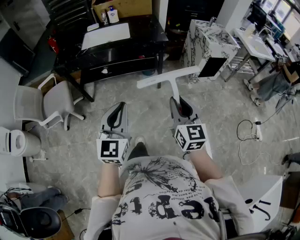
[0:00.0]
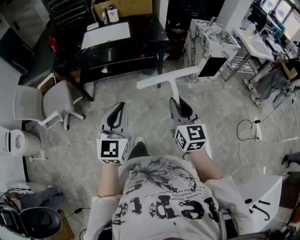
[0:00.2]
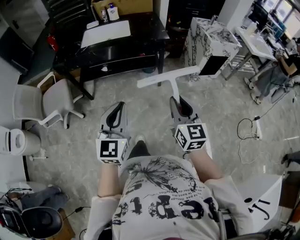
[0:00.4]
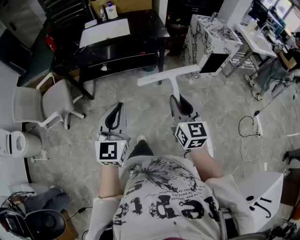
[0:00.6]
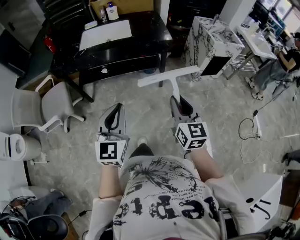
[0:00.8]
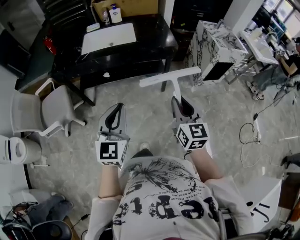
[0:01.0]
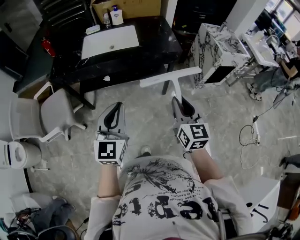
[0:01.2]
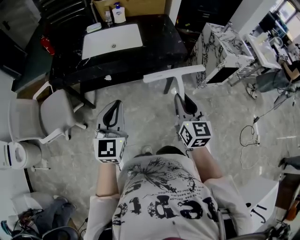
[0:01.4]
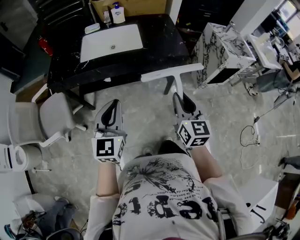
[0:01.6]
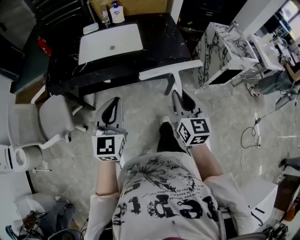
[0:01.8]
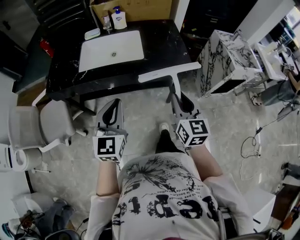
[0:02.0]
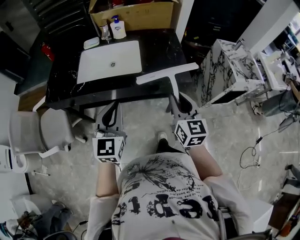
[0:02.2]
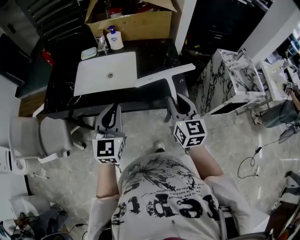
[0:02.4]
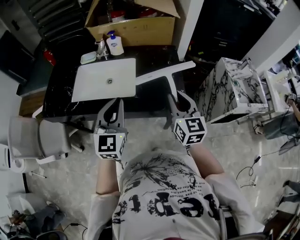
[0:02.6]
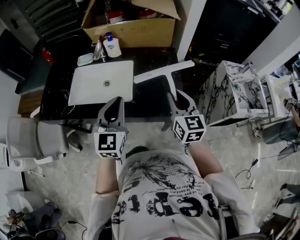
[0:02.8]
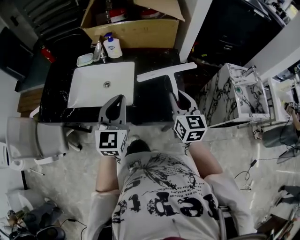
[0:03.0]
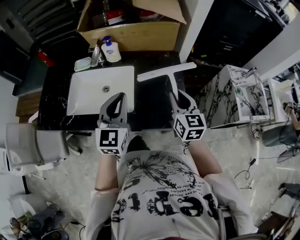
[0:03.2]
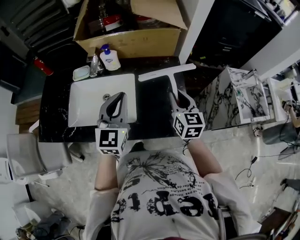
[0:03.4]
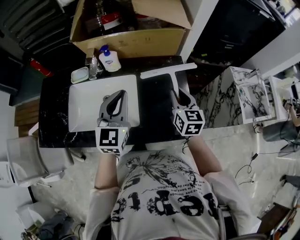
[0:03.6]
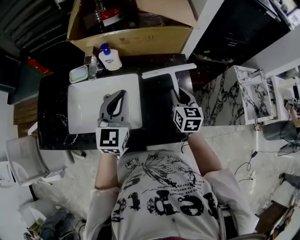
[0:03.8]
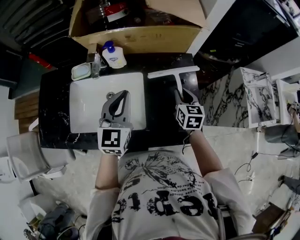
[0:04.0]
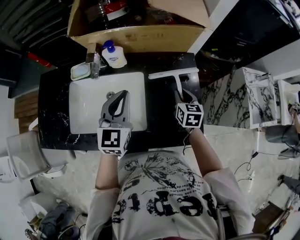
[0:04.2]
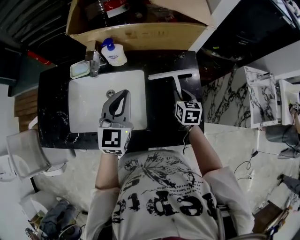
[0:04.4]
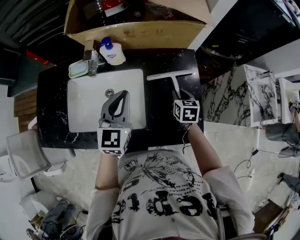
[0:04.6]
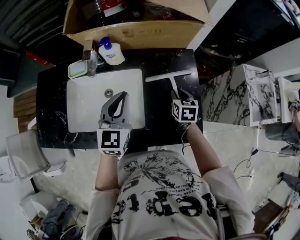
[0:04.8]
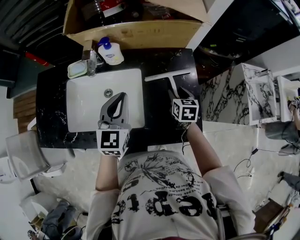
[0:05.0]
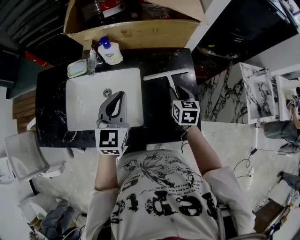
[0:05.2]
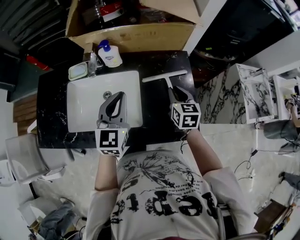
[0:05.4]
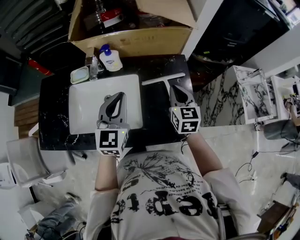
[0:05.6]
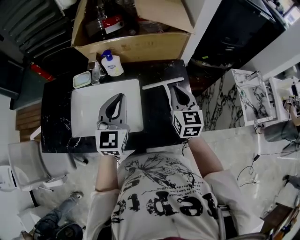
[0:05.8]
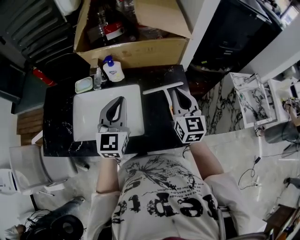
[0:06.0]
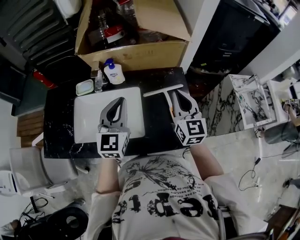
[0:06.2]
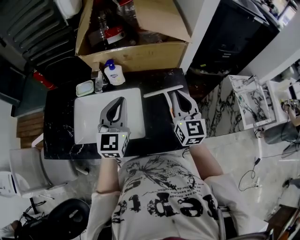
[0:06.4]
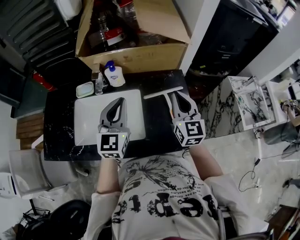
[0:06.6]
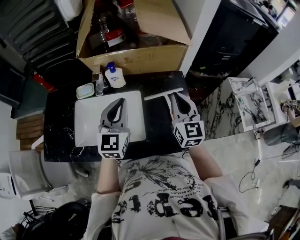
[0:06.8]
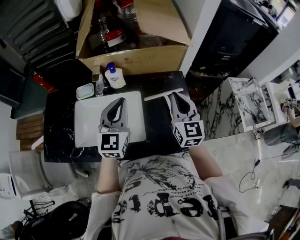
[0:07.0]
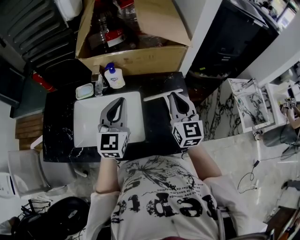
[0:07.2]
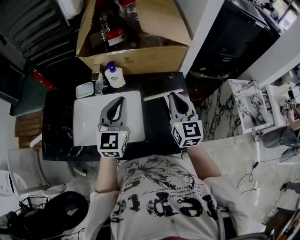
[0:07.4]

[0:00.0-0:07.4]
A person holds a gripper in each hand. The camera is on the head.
0.0 to 1.4 s: Both grippers travel together forward and to the left, some 25 cm.
1.4 to 3.0 s: The pair of grippers is taken forward, some 40 cm.
3.0 to 4.4 s: The right gripper shifts approximately 25 cm downward and forward, and swivels approximately 30 degrees, while the left gripper is displaced forward by some 20 cm.
4.4 to 6.0 s: The right gripper shifts some 20 cm upward, tilts its fingers about 30 degrees upward, and opens and closes again; the left gripper heads upward, covering about 5 cm.
6.0 to 7.4 s: The grippers move only a little.

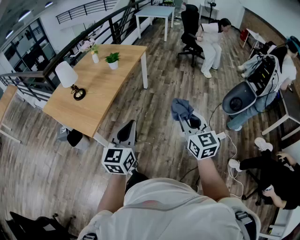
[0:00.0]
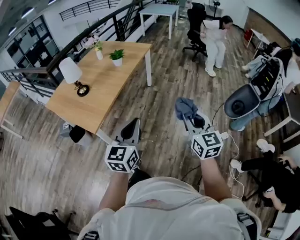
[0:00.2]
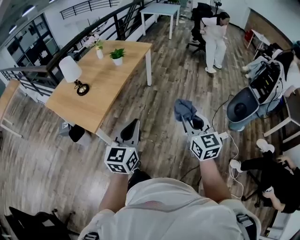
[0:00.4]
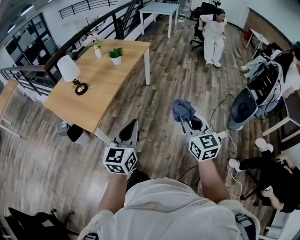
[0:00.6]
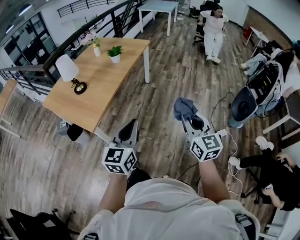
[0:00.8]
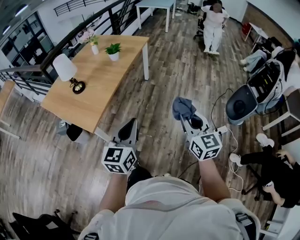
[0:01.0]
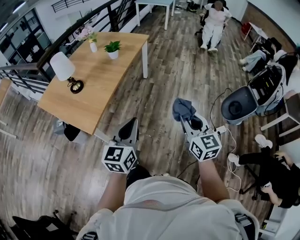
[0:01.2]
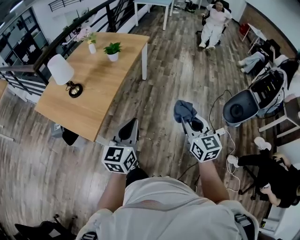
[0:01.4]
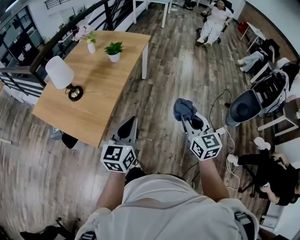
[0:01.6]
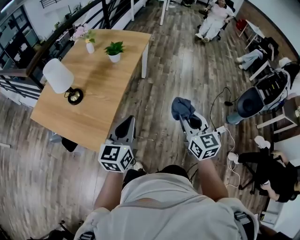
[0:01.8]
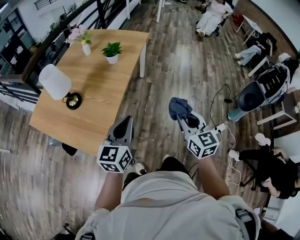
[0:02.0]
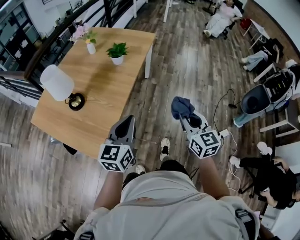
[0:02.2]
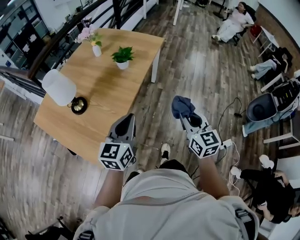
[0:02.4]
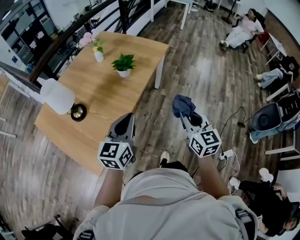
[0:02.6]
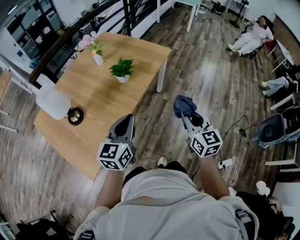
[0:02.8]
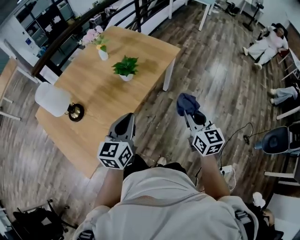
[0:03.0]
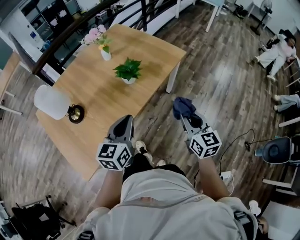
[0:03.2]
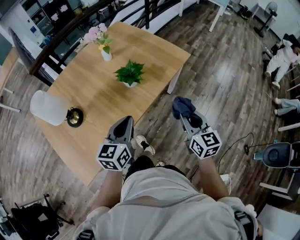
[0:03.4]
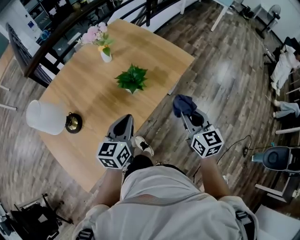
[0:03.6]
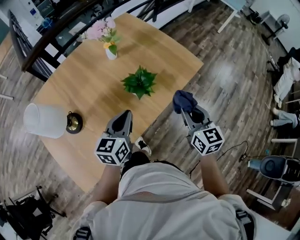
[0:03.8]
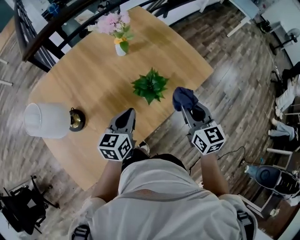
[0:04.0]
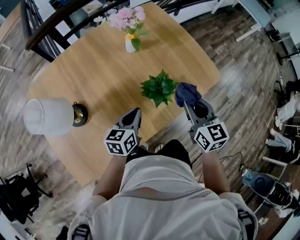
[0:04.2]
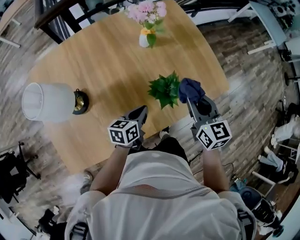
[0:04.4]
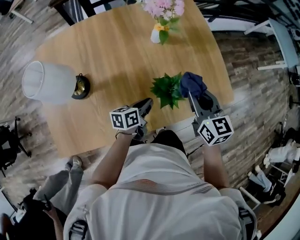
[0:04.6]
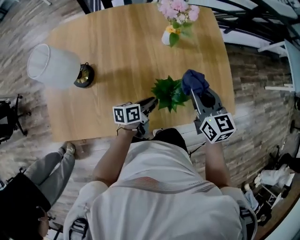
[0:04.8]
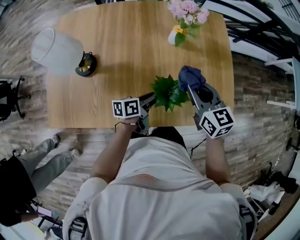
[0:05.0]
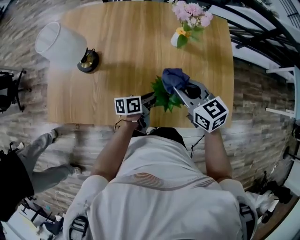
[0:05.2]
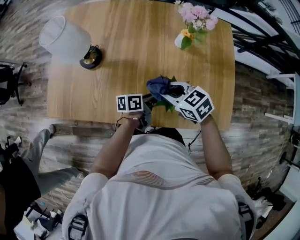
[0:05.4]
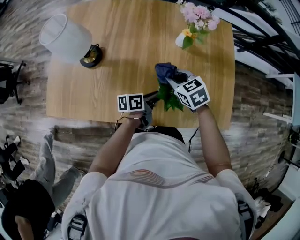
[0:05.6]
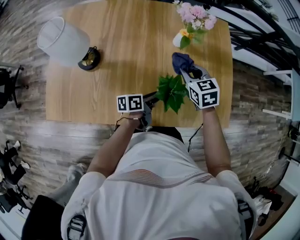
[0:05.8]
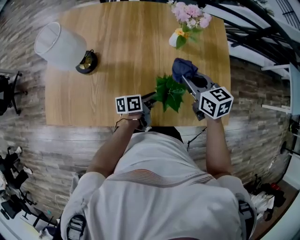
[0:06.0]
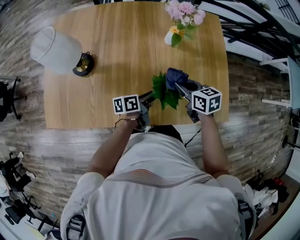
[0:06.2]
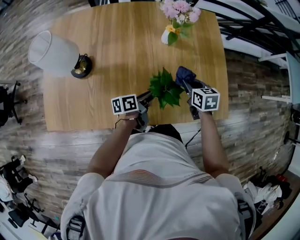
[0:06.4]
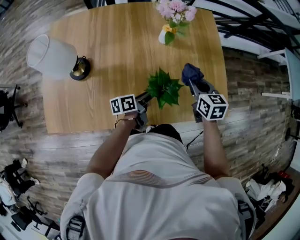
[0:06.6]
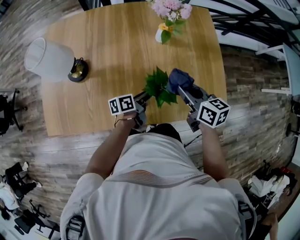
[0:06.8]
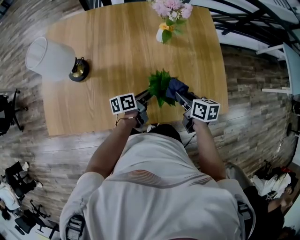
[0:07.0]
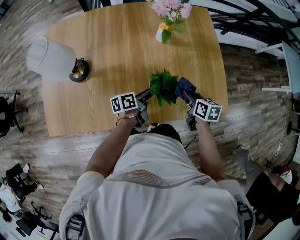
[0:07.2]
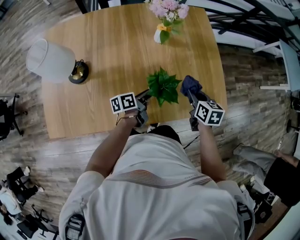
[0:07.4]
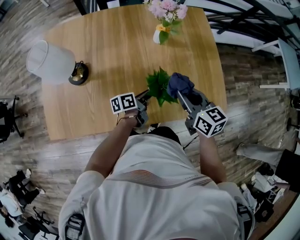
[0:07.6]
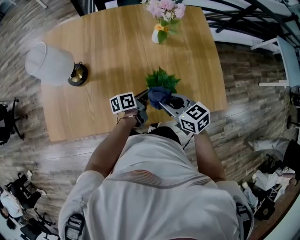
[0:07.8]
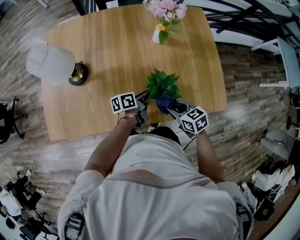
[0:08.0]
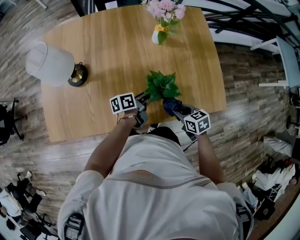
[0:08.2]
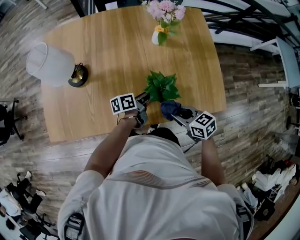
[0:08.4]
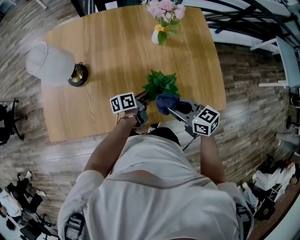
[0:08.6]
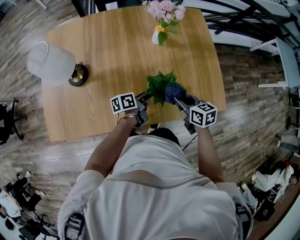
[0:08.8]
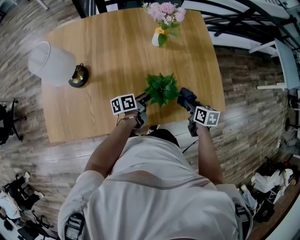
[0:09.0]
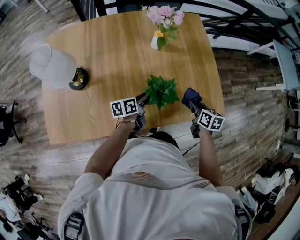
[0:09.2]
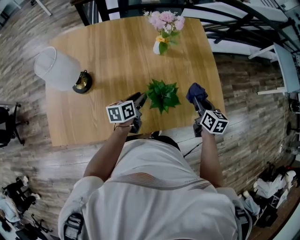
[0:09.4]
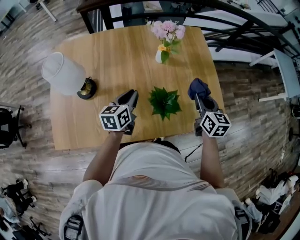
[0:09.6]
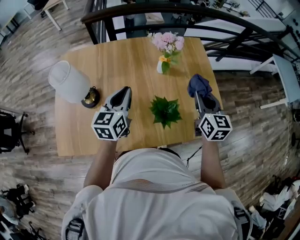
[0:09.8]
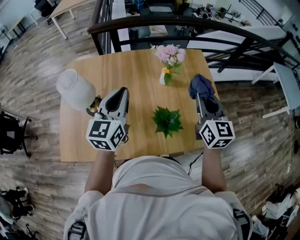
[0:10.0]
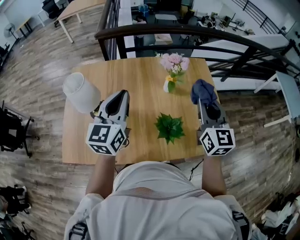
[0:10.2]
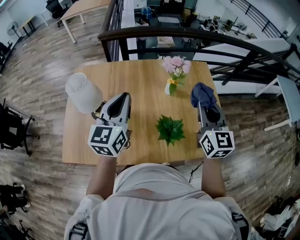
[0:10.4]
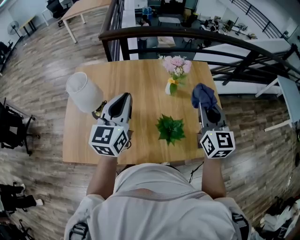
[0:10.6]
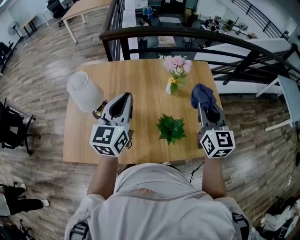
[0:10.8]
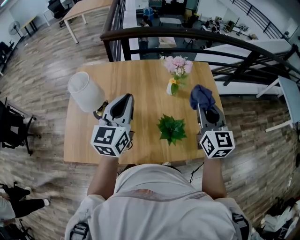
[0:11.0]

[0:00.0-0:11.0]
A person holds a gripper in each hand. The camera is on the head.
0.0 to 1.6 s: The two grippers go approximately 15 cm forward and to the left.
1.6 to 3.2 s: Both grippers travel together forward, approximately 40 cm. The right gripper swivels about 20 degrees; the left gripper swivels some 20 degrees.
3.2 to 4.8 s: The right gripper changes place by about 40 cm, and rotates about 50 degrees; the left gripper changes place by about 35 cm, and twists approximately 60 degrees counterclockwise, seen from behind.
4.8 to 6.2 s: The right gripper swings up and down, roughly 10 cm each way, with 2 reversals, and changes its angle by some 30 degrees.
6.2 to 7.8 s: The right gripper goes left and right, about 15 cm each way, reversing 3 times.
7.8 to 9.4 s: The right gripper swings left and right, approximately 20 cm each way, with 2 reversals, and changes its angle by about 40 degrees. The left gripper moves about 5 cm, and changes its angle by some 30 degrees.
9.4 to 11.0 s: The left gripper moves upward, roughly 30 cm, turns by some 50 degrees, and closes up; the right gripper moves upward and to the left, roughly 25 cm, and turns by approximately 40 degrees.

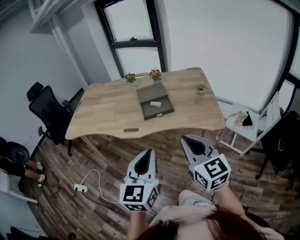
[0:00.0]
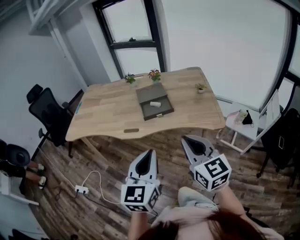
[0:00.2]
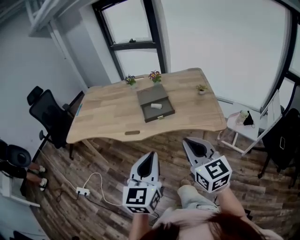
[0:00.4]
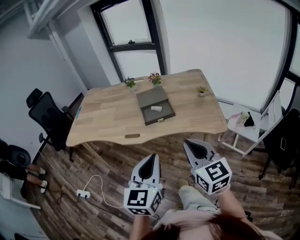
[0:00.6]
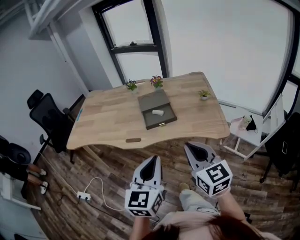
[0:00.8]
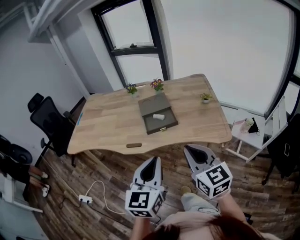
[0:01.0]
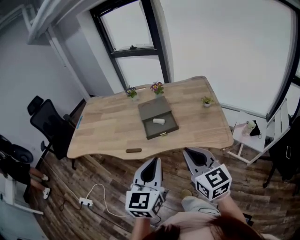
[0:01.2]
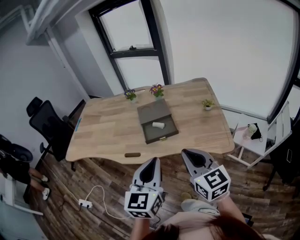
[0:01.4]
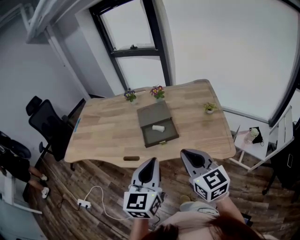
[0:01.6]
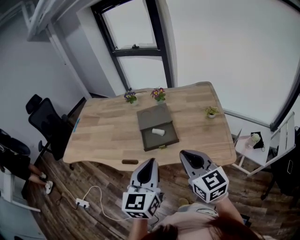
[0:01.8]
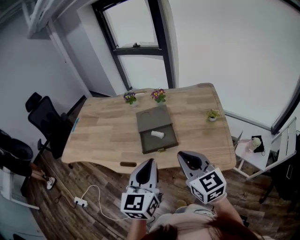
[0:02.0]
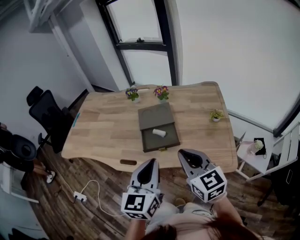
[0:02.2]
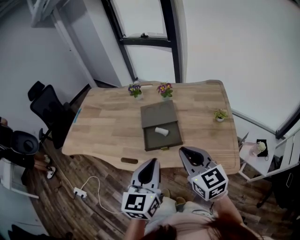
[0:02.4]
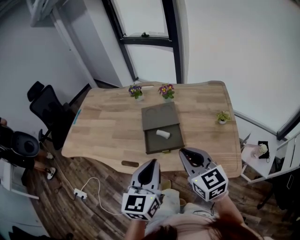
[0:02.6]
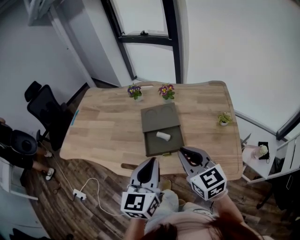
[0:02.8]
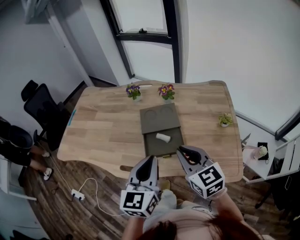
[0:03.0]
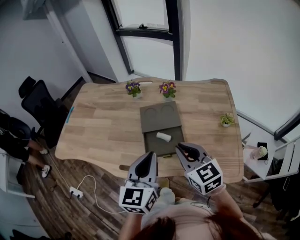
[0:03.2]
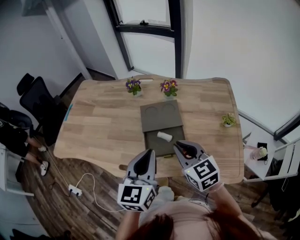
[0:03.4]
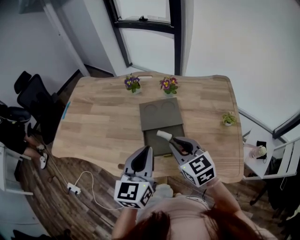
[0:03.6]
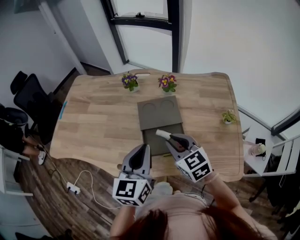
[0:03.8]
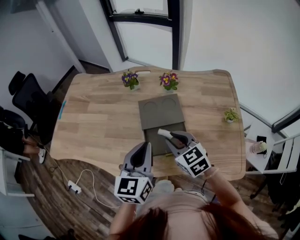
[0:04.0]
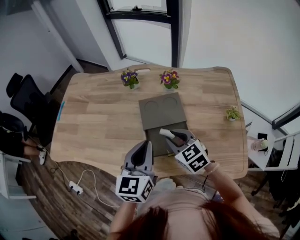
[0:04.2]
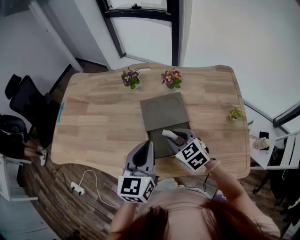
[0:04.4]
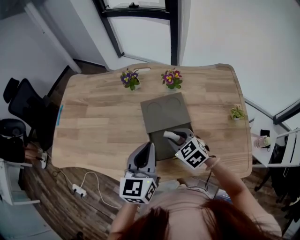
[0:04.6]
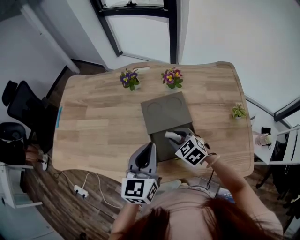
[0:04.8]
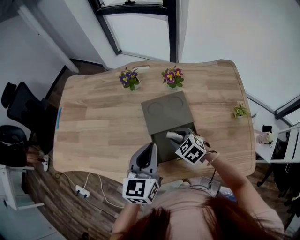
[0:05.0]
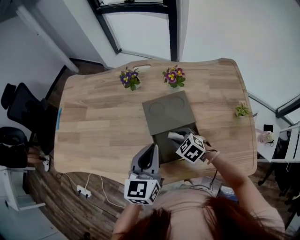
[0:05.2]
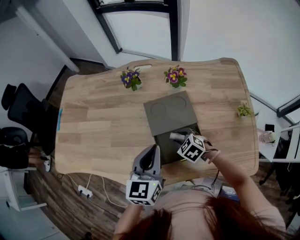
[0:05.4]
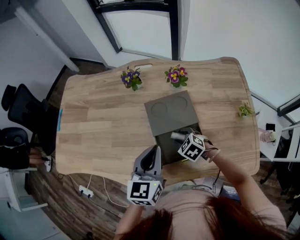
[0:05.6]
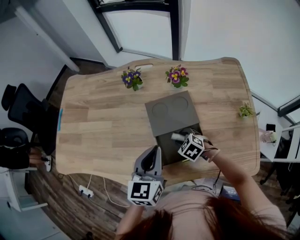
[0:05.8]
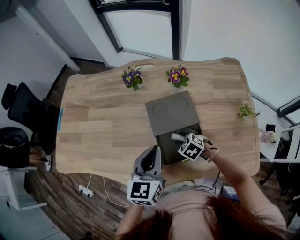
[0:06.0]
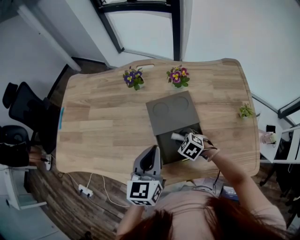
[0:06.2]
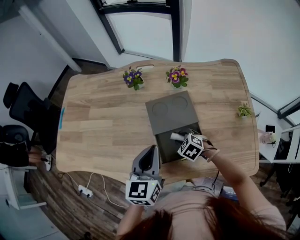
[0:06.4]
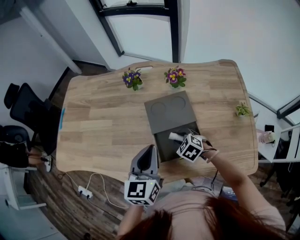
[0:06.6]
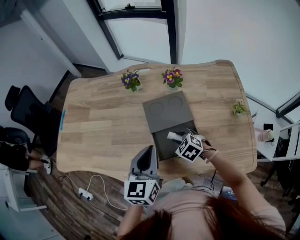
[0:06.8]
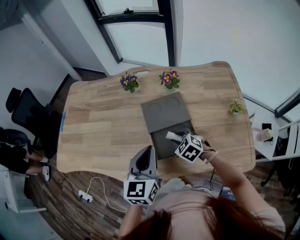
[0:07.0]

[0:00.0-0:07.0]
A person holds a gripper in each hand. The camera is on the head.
0.0 to 1.4 s: Both grippers travel together forward, approximately 15 cm.
1.4 to 2.8 s: The two grippers go roughly 15 cm forward.
2.8 to 4.2 s: The right gripper is displaced forward, downward and to the left by approximately 20 cm, and swivels about 20 degrees; the left gripper heads forward, covering some 15 cm.
4.2 to 5.6 s: The left gripper shifts about 5 cm downward. The right gripper moves downward, about 15 cm, and turns by some 30 degrees.
5.6 to 7.0 s: The right gripper heads upward, covering some 5 cm. Meanwhile the left gripper shifts by approximately 5 cm.
